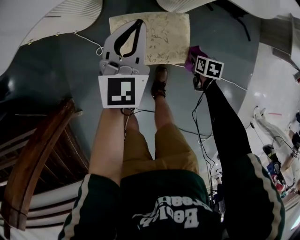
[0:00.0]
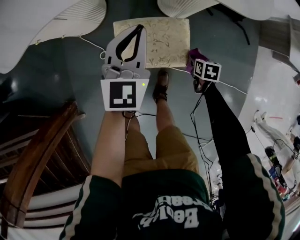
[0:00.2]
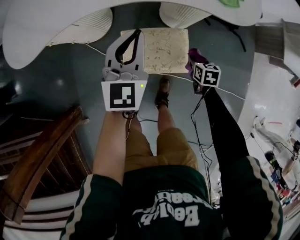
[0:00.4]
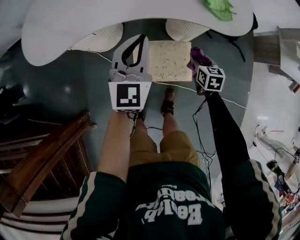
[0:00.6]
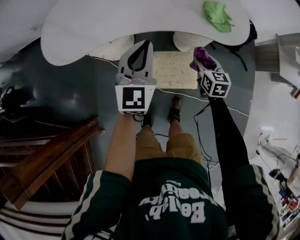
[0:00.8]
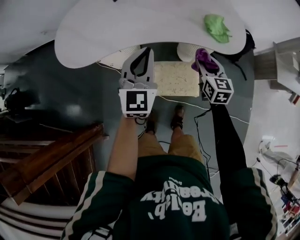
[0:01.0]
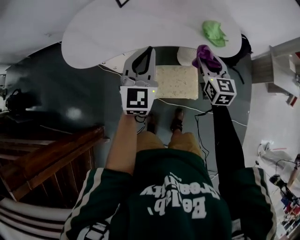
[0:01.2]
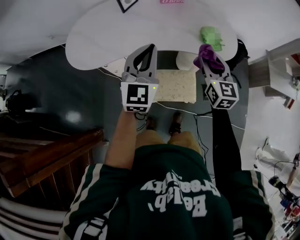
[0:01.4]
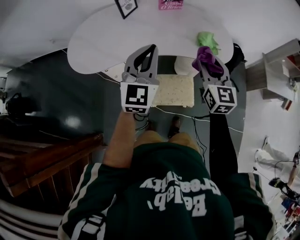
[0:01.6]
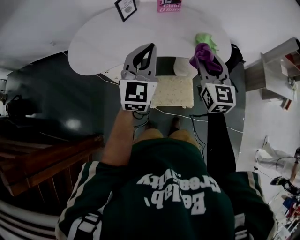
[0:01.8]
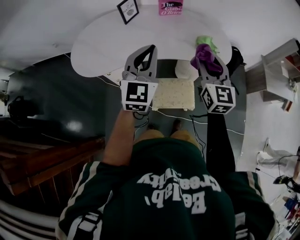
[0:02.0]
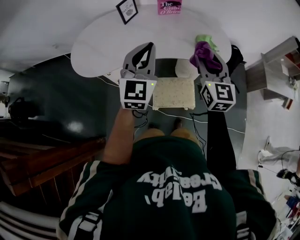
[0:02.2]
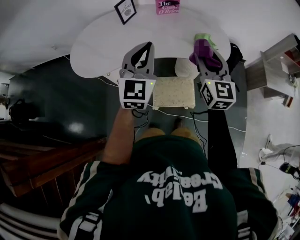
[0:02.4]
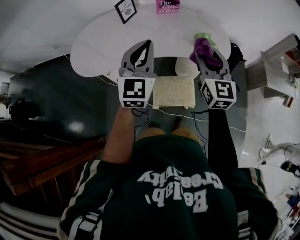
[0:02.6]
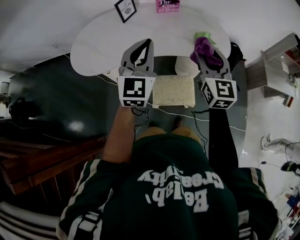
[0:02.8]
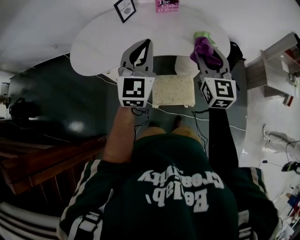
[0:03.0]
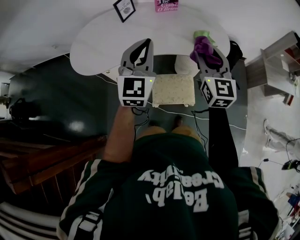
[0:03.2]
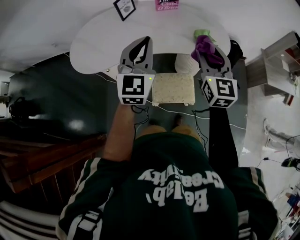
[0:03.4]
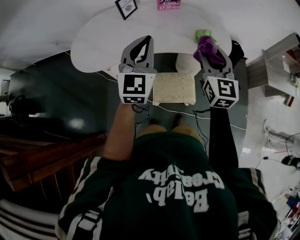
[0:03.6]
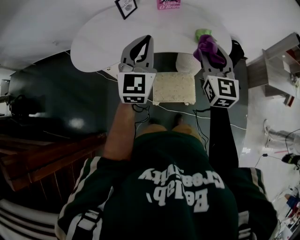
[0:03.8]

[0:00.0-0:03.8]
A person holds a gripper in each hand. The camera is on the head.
0:00.0 to 0:01.2: The left gripper travels upward by about 30 cm. The right gripper shifts roughly 50 cm upward, and tilts its fingers roughly 50 degrees upward.
0:01.2 to 0:02.6: The left gripper shifts roughly 10 cm upward, while the right gripper goes some 15 cm upward.
0:02.6 to 0:03.8: Both grippers stay put.

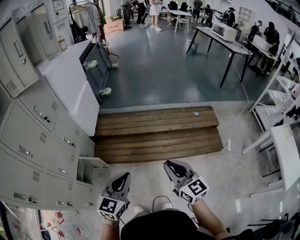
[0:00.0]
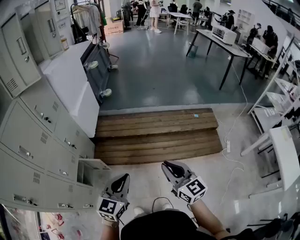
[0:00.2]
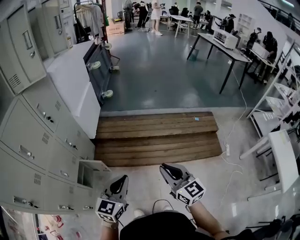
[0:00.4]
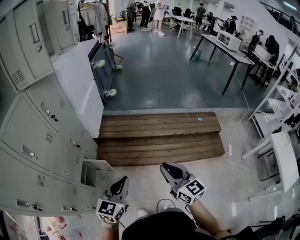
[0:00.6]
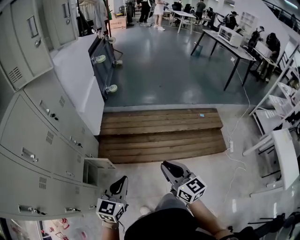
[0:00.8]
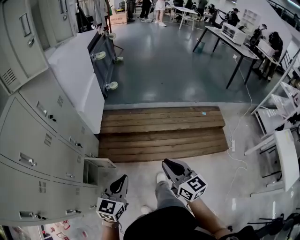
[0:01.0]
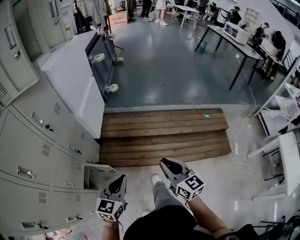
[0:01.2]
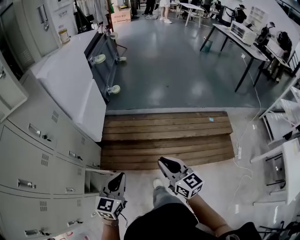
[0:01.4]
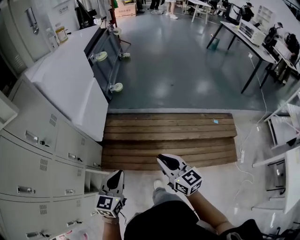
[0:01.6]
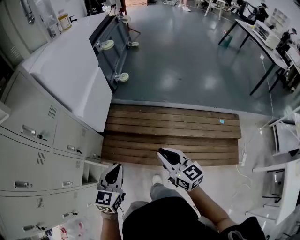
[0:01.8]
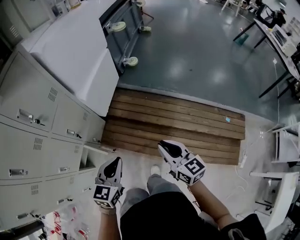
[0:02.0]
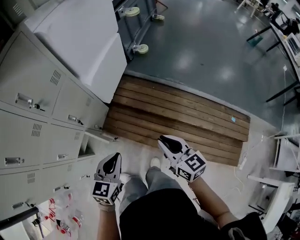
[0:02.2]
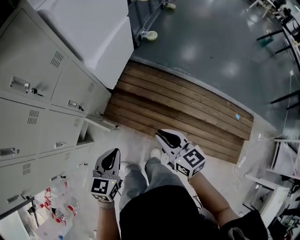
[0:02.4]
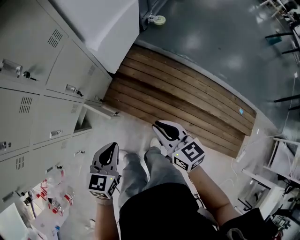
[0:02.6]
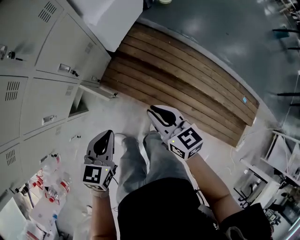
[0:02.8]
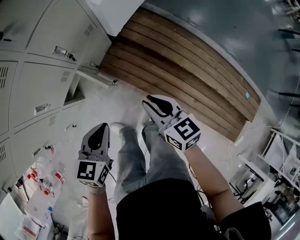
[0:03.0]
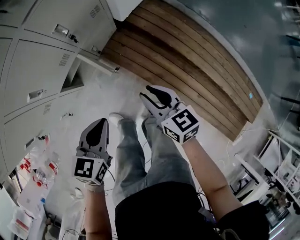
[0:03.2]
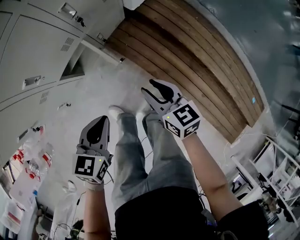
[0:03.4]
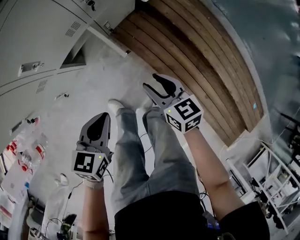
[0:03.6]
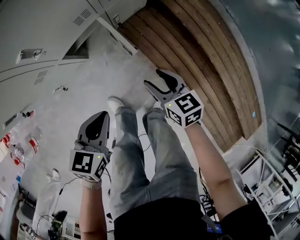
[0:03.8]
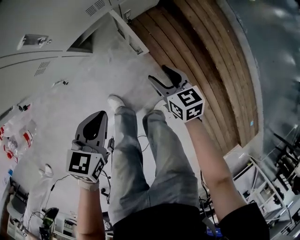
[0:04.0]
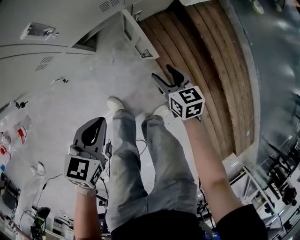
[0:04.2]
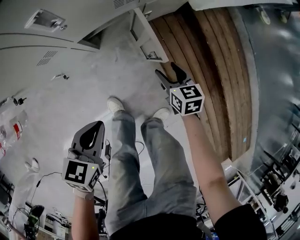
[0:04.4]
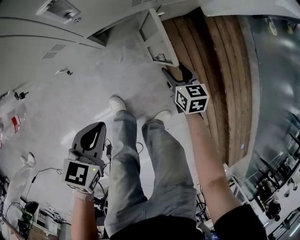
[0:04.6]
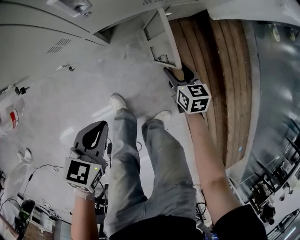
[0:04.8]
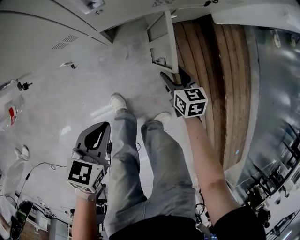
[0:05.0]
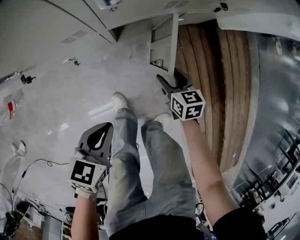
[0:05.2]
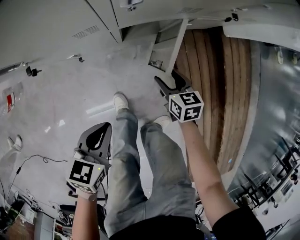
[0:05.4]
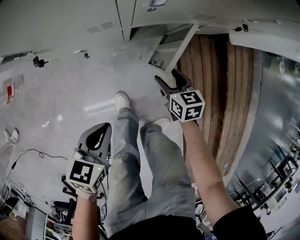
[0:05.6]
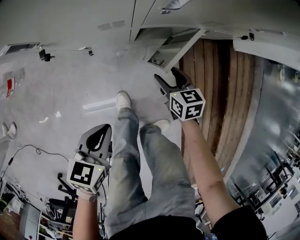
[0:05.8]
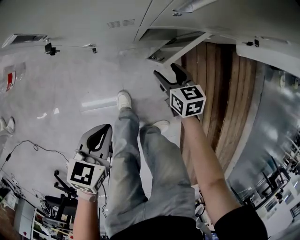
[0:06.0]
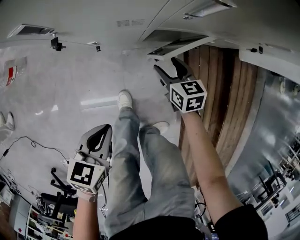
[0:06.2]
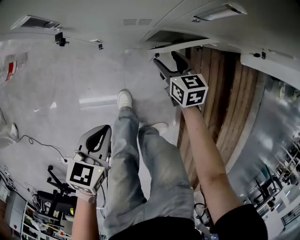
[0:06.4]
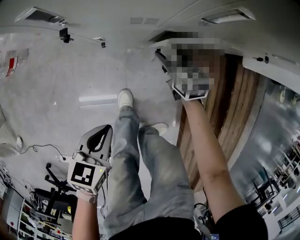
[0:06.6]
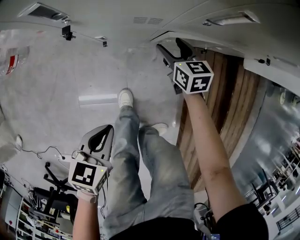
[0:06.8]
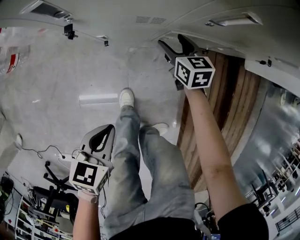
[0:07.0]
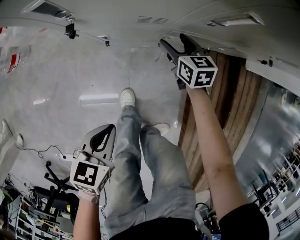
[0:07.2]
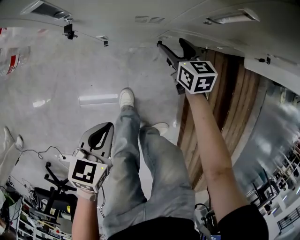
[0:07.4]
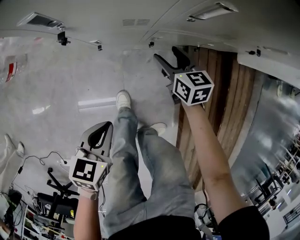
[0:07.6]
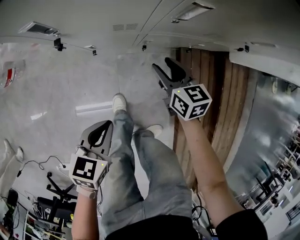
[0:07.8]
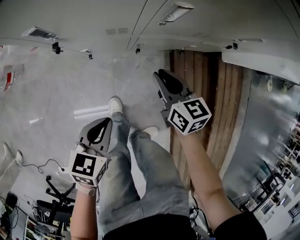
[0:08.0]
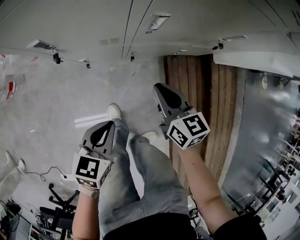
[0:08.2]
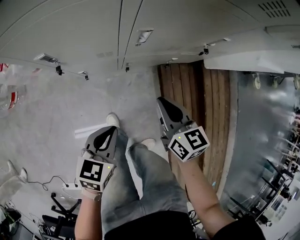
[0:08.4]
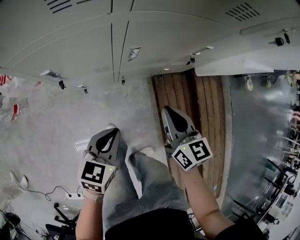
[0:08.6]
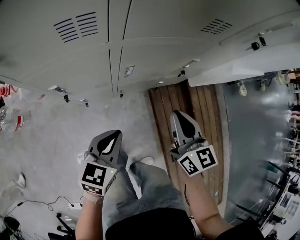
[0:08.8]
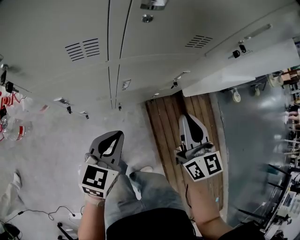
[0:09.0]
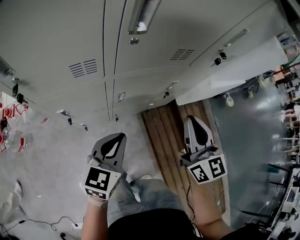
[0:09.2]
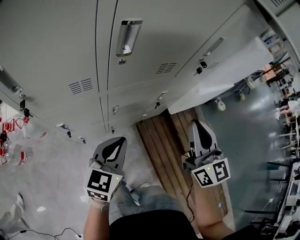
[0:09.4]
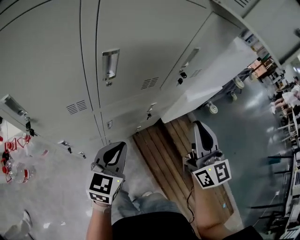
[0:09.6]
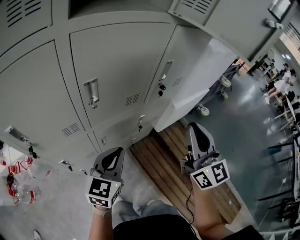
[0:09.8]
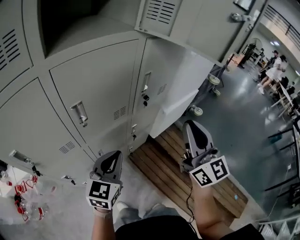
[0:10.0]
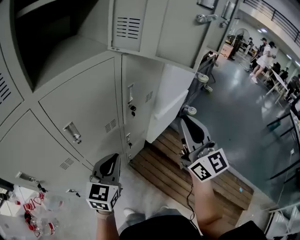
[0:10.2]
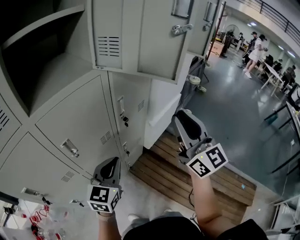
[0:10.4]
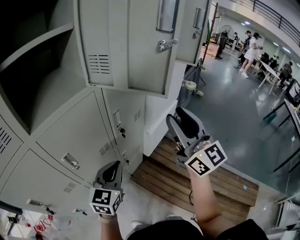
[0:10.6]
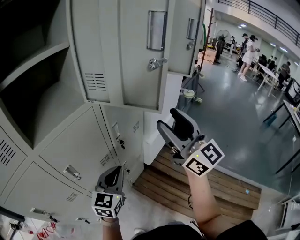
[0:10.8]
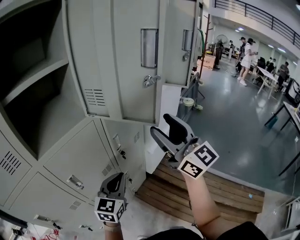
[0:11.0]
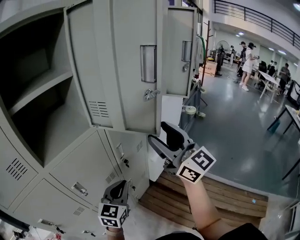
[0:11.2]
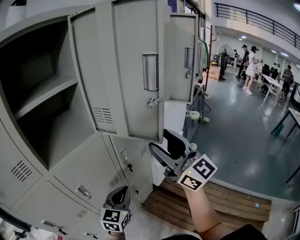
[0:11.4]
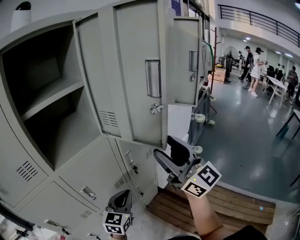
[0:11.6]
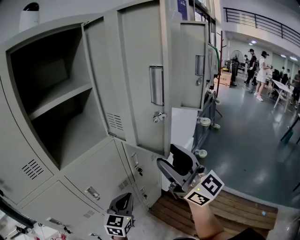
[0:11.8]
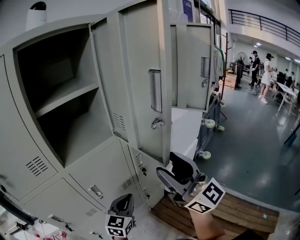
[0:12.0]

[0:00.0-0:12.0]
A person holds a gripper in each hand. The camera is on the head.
0:00.0 to 0:01.6: Both grippers travel together forward and to the left, roughly 35 cm.
0:01.6 to 0:03.0: The two grippers go roughly 25 cm downward. The right gripper rotates approximately 40 degrees, while the left gripper changes its angle by about 30 degrees.
0:03.0 to 0:04.4: The two grippers go approximately 35 cm downward and to the left. The right gripper rotates some 30 degrees, and opens up, while the left gripper rotates about 30 degrees.
0:04.4 to 0:06.0: The left gripper travels to the left by roughly 10 cm, and changes its angle by roughly 20 degrees, while the right gripper shifts some 20 cm to the left, and swivels approximately 20 degrees.
0:06.0 to 0:07.6: The right gripper shifts some 5 cm forward.
0:07.6 to 0:09.0: The right gripper goes some 40 cm upward, changes its angle by approximately 40 degrees, and closes its fingers. The left gripper is displaced upward, forward and to the right by roughly 35 cm, and turns by approximately 30 degrees.
0:09.0 to 0:10.4: Both grippers move upward and to the right, roughly 40 cm. The right gripper rotates some 40 degrees. Meanwhile the left gripper swivels roughly 30 degrees.
0:10.4 to 0:12.0: The right gripper shifts approximately 15 cm upward and to the left, turns by some 20 degrees, and opens up.

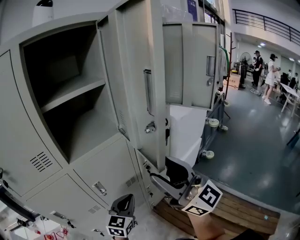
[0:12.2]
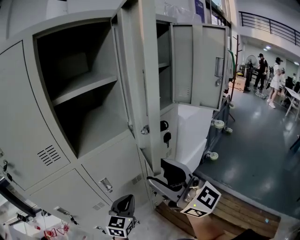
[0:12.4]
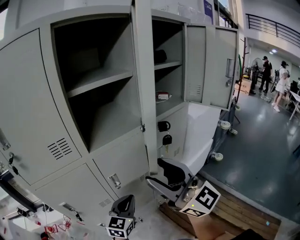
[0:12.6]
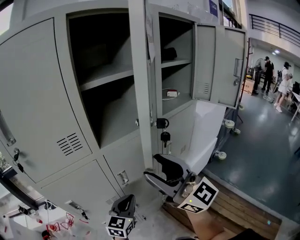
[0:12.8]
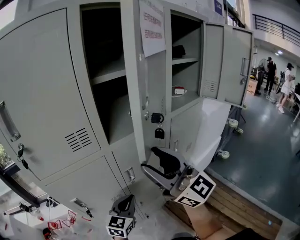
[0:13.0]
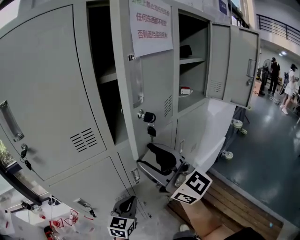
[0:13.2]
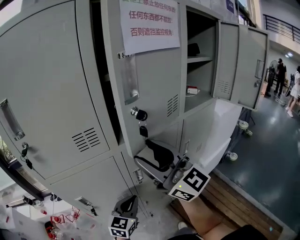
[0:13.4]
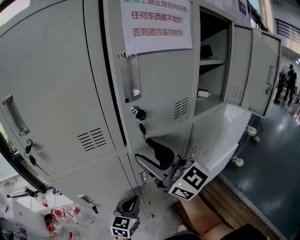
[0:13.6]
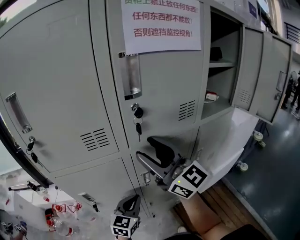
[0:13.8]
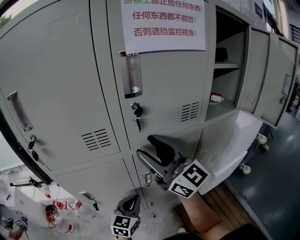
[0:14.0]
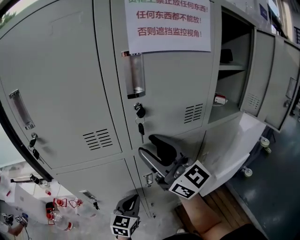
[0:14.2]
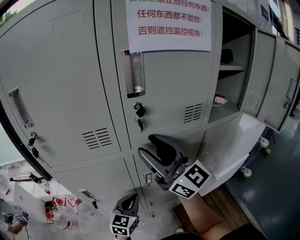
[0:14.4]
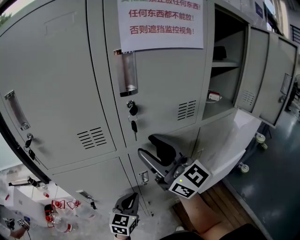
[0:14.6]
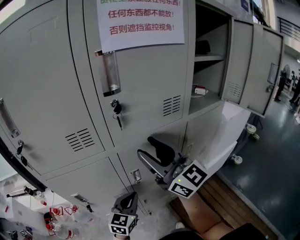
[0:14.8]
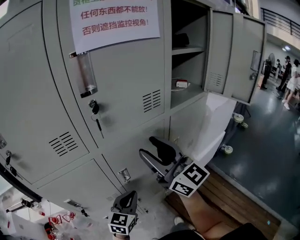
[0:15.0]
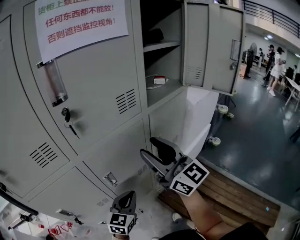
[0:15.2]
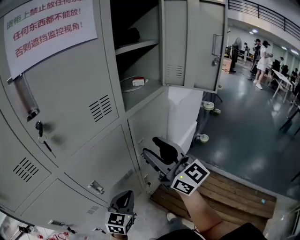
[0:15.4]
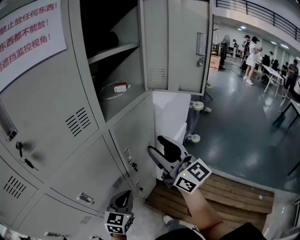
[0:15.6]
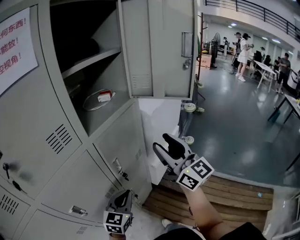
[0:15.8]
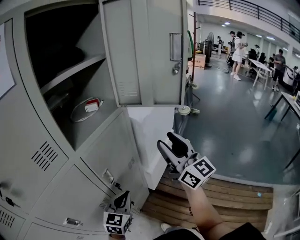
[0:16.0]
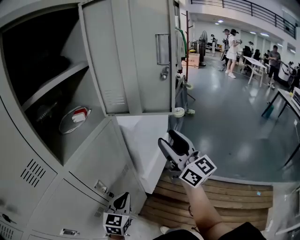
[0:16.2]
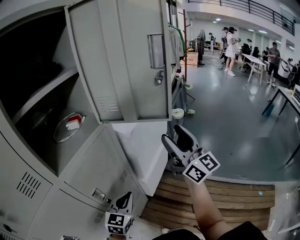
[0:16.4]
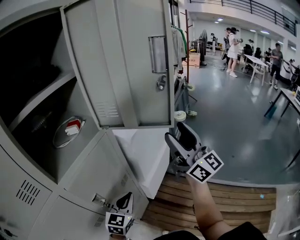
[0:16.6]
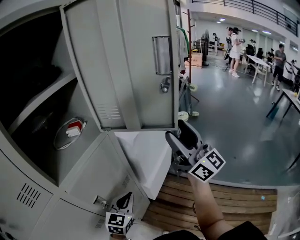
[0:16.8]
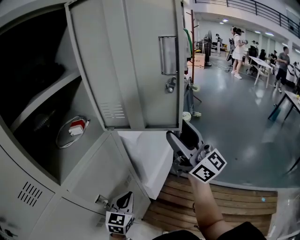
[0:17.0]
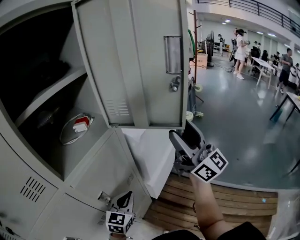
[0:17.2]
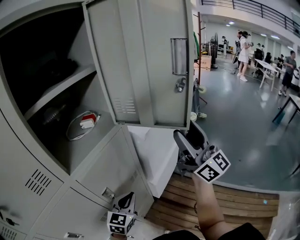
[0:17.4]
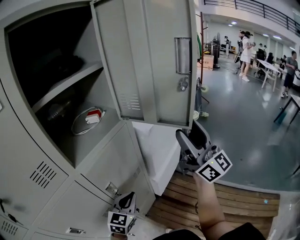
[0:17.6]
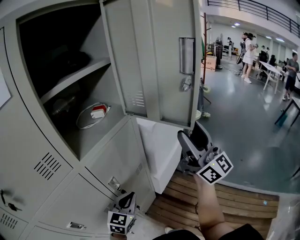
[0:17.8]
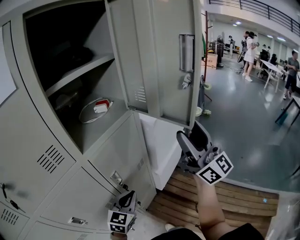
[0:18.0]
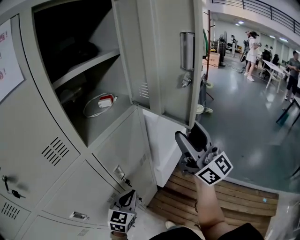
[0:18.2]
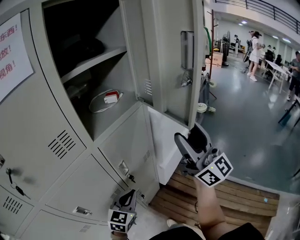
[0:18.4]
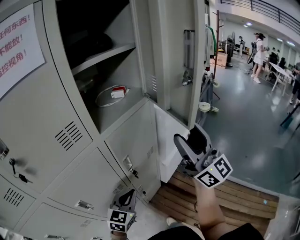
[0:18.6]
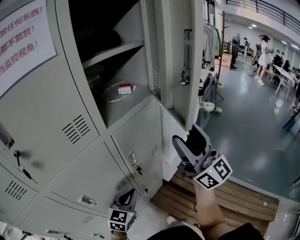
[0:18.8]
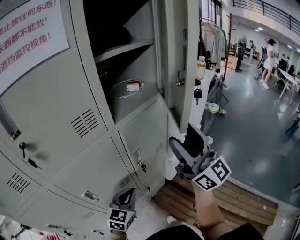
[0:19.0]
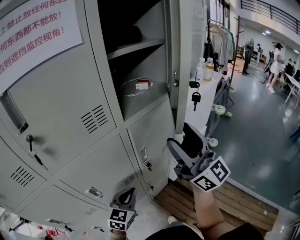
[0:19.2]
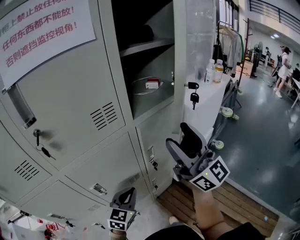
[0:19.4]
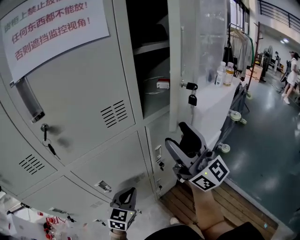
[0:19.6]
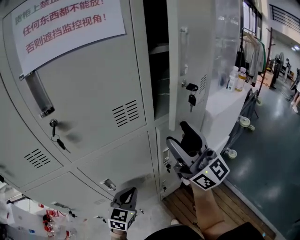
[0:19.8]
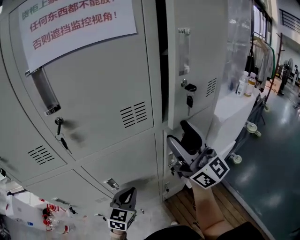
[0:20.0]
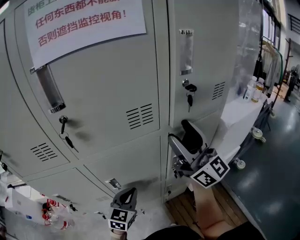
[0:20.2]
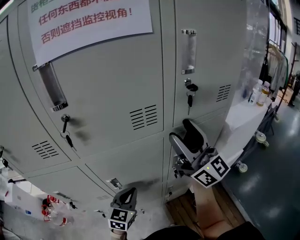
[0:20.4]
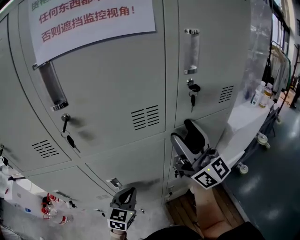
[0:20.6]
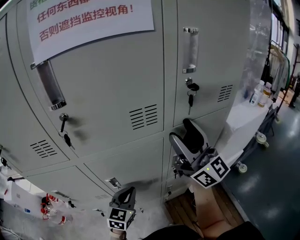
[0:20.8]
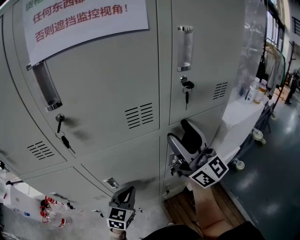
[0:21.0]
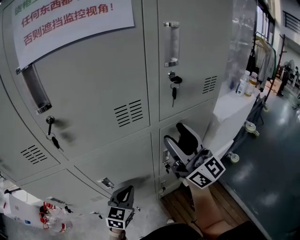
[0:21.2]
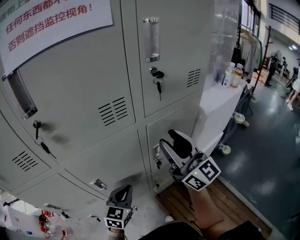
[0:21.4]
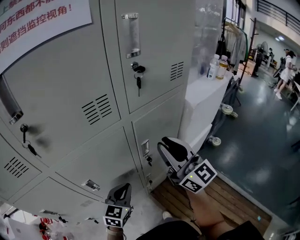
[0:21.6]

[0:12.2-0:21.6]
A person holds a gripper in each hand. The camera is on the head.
0:12.2 to 0:13.8: The left gripper travels to the left by some 20 cm. The right gripper goes some 25 cm to the left and forward, and rotates some 20 degrees.
0:13.8 to 0:15.4: The left gripper ends up approximately 10 cm from where it was, and turns by roughly 20 degrees; the right gripper moves about 10 cm, and swivels about 30 degrees.
0:15.4 to 0:17.0: The right gripper goes roughly 30 cm to the right and forward, and changes its angle by roughly 20 degrees, while the left gripper shifts some 25 cm forward and to the right.
0:17.0 to 0:18.4: Both grippers move backward and to the left, some 15 cm.
0:18.4 to 0:20.0: The right gripper shifts by about 25 cm, and swivels approximately 30 degrees; the left gripper shifts by some 15 cm, and turns by about 30 degrees.
0:20.0 to 0:21.6: The left gripper travels to the right by approximately 5 cm. The right gripper moves downward, approximately 10 cm, and closes its fingers.